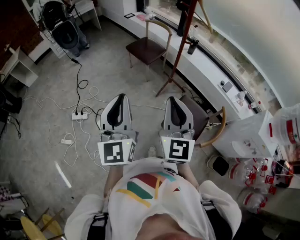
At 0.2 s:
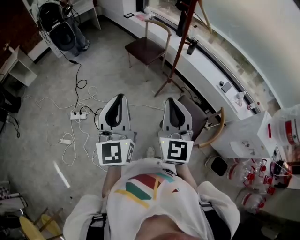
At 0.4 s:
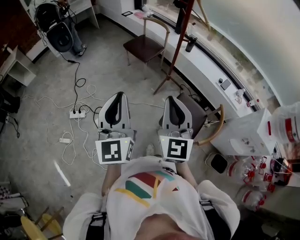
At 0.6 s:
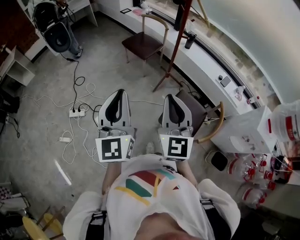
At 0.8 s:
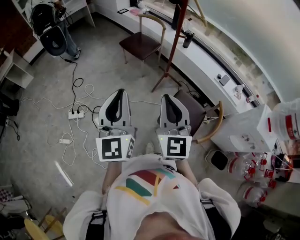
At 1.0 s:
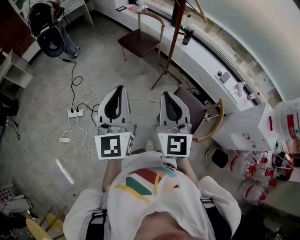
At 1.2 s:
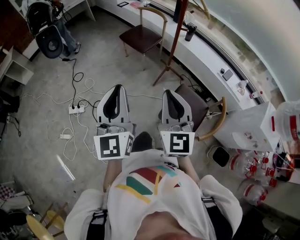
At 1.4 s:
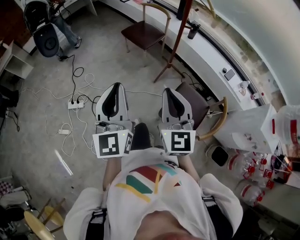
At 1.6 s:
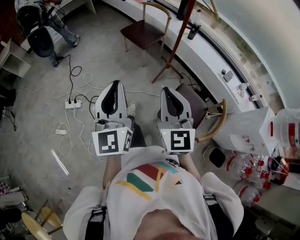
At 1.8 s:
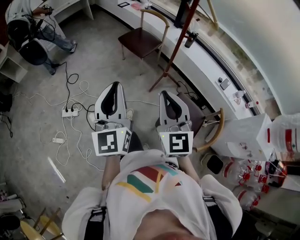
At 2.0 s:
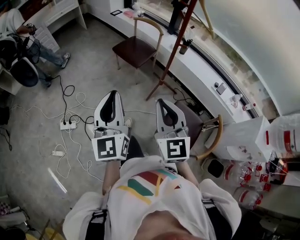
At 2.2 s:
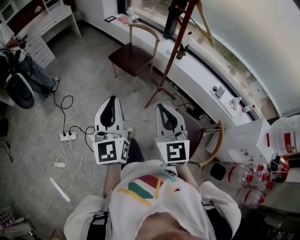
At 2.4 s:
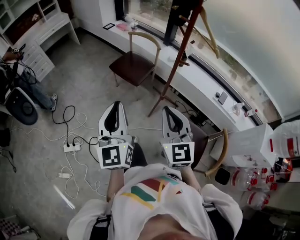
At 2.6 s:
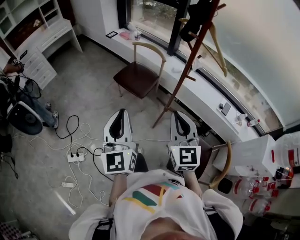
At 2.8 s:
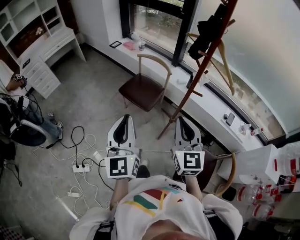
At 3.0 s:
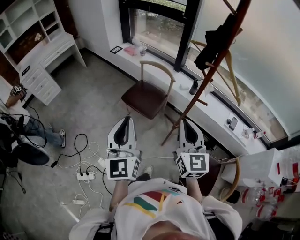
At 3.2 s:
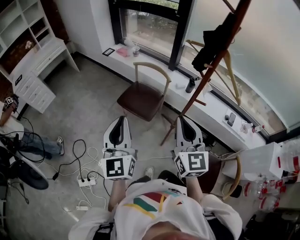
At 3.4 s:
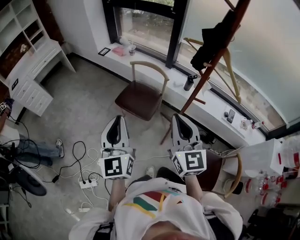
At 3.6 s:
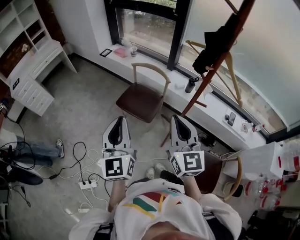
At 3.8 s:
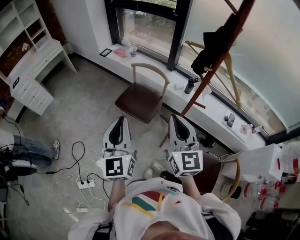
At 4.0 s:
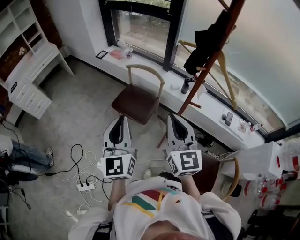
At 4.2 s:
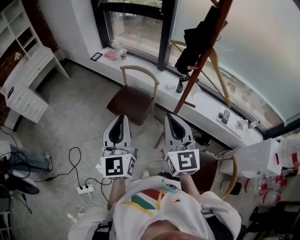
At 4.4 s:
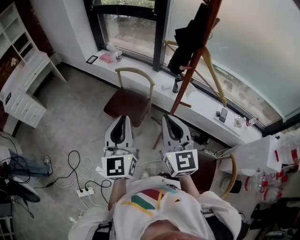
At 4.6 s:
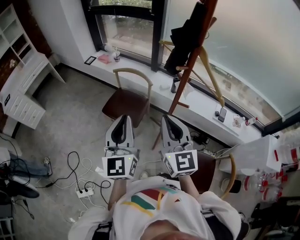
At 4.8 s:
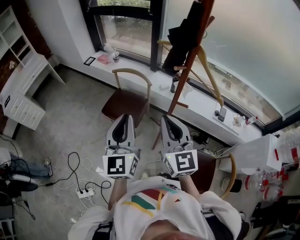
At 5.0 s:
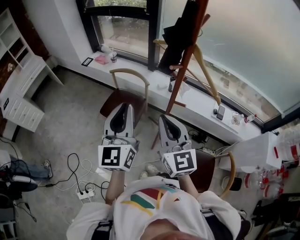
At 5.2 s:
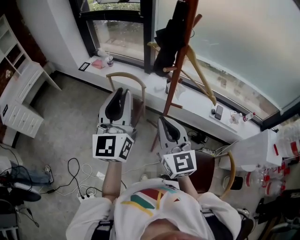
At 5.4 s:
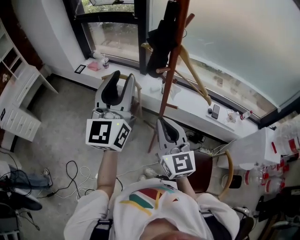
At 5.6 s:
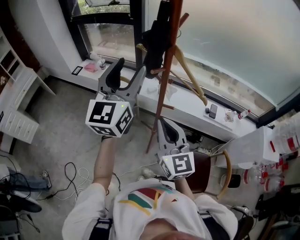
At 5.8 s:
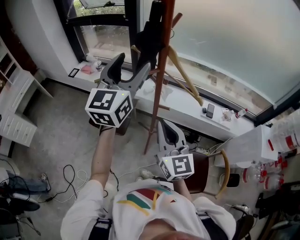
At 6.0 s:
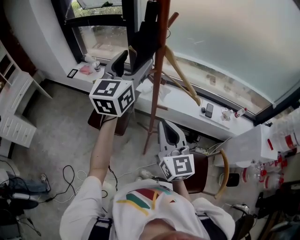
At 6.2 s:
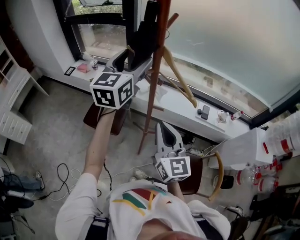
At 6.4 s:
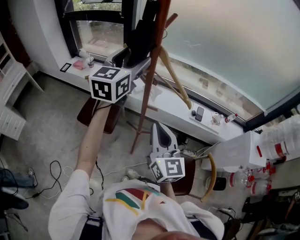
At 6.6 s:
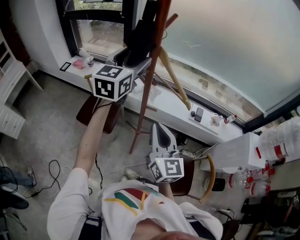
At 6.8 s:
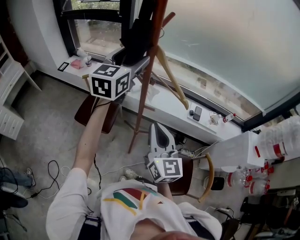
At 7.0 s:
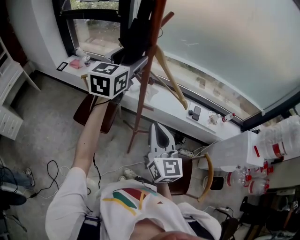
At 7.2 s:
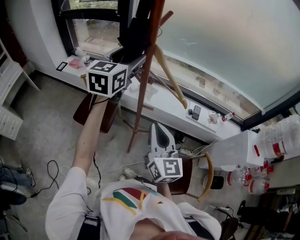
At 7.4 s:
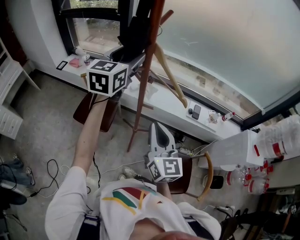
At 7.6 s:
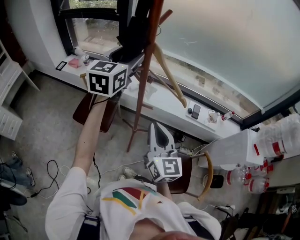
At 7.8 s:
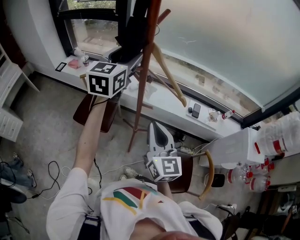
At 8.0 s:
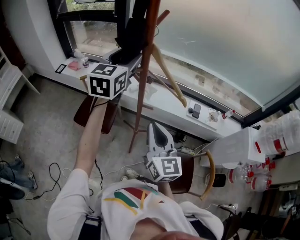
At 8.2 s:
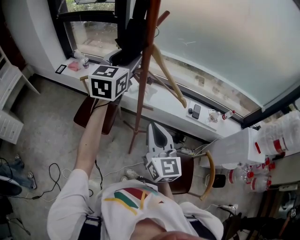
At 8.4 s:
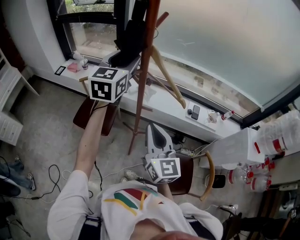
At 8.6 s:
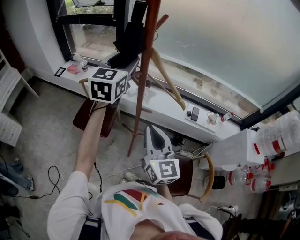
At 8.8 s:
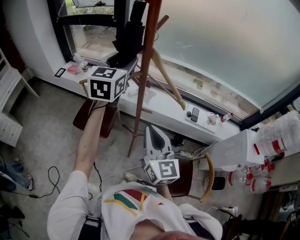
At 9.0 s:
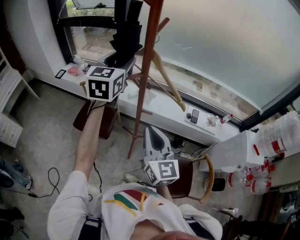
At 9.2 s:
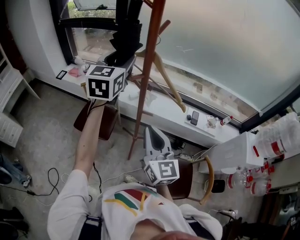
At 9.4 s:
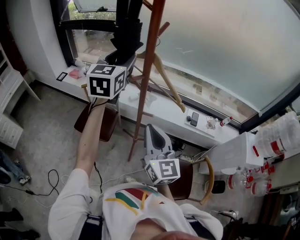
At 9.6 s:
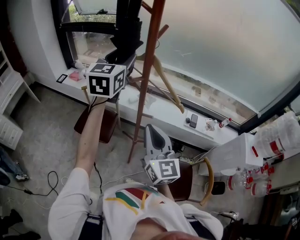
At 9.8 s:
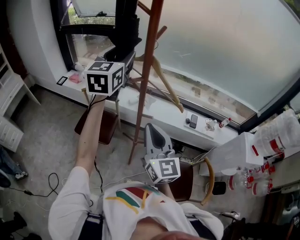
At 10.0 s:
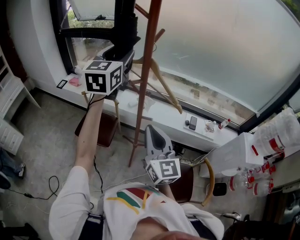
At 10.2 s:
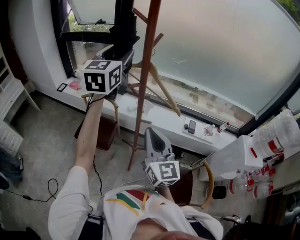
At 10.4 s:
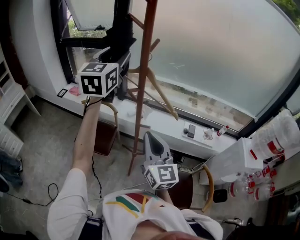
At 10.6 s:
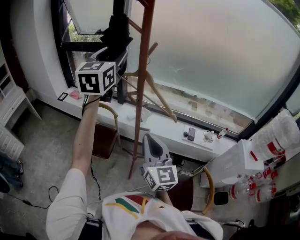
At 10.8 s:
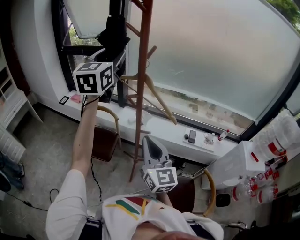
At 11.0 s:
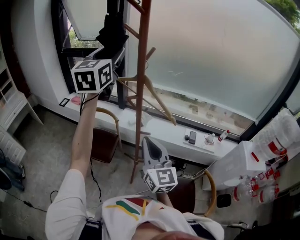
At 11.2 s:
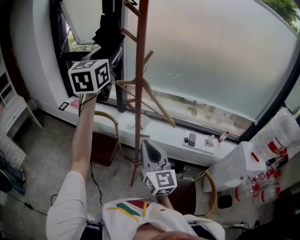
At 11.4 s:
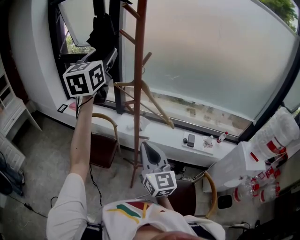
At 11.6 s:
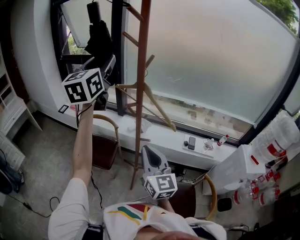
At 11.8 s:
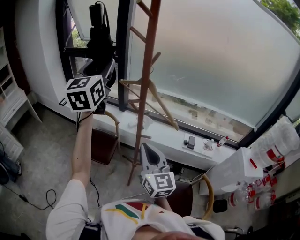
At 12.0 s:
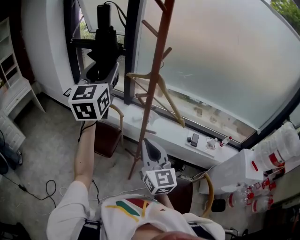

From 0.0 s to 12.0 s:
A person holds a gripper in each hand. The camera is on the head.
From 0.0 s to 1.6 s: The left gripper travels forward by some 5 cm; the right gripper goes approximately 5 cm downward and forward.
From 1.6 s to 3.0 s: The grippers both shift forward by roughly 40 cm.
From 3.0 s to 4.4 s: The left gripper moves forward and to the right, about 15 cm; the right gripper heads forward, covering some 5 cm.
From 4.4 s to 6.0 s: The left gripper moves to the right, forward and upward, about 30 cm, swivels approximately 30 degrees, and opens its fingers. The right gripper moves to the right, some 10 cm.
From 6.0 s to 7.6 s: The left gripper travels forward by roughly 5 cm.
From 7.6 s to 9.0 s: The grippers move only a little.
From 9.0 s to 10.4 s: The left gripper goes some 10 cm upward.
From 10.4 s to 12.0 s: The left gripper travels to the left and backward by roughly 10 cm.

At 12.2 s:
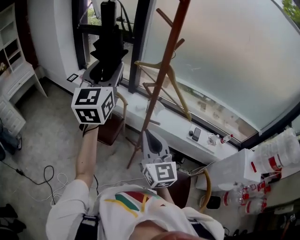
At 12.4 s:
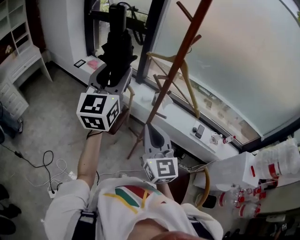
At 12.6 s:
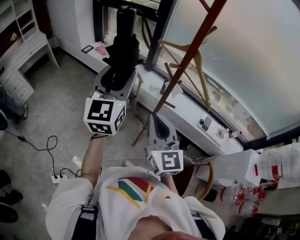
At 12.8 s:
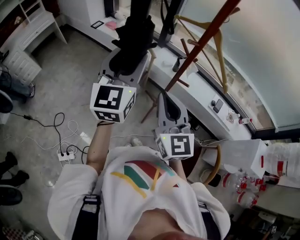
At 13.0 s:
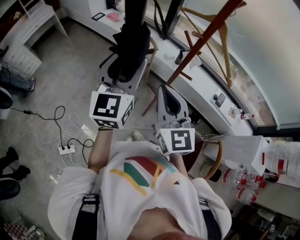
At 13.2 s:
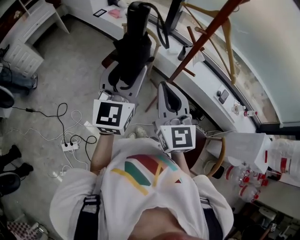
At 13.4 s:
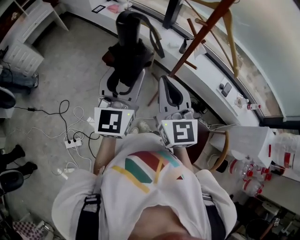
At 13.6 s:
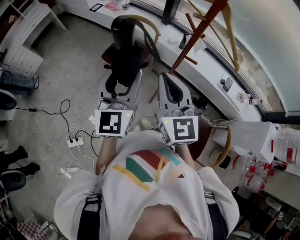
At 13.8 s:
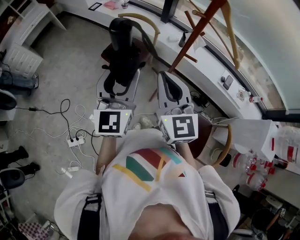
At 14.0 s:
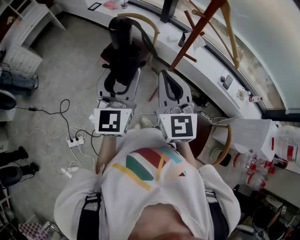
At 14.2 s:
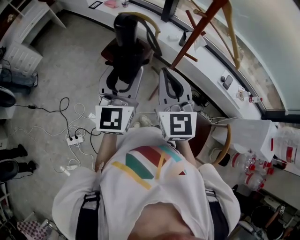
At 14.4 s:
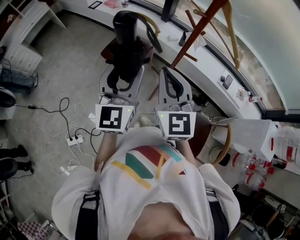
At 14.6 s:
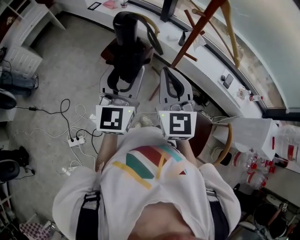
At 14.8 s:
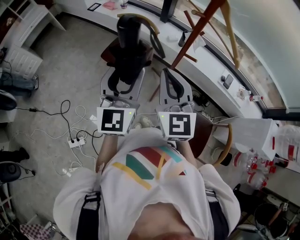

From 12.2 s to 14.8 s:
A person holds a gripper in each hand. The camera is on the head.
From 12.2 s to 13.4 s: The right gripper travels to the left by roughly 5 cm. The left gripper is displaced downward and backward by approximately 25 cm.
From 13.4 s to 14.8 s: The grippers make only small movements.

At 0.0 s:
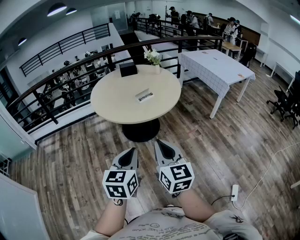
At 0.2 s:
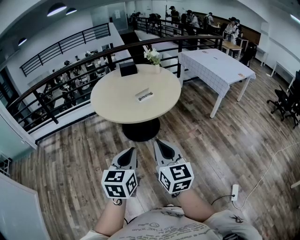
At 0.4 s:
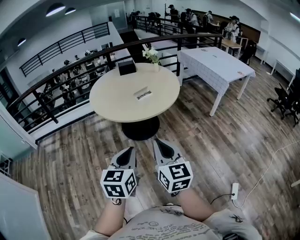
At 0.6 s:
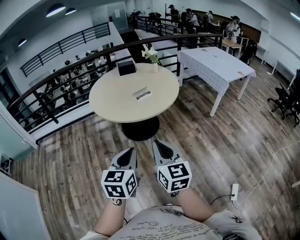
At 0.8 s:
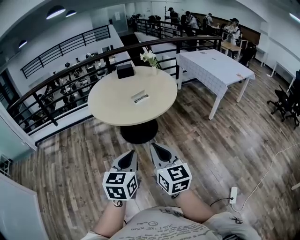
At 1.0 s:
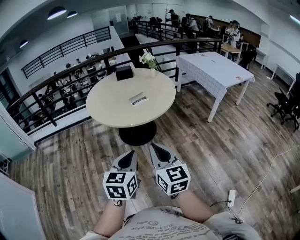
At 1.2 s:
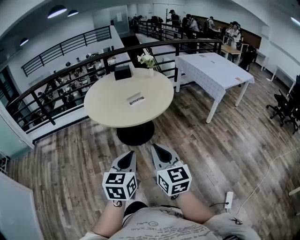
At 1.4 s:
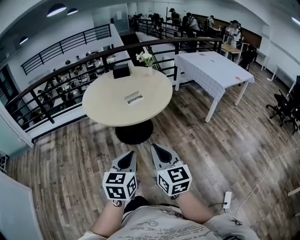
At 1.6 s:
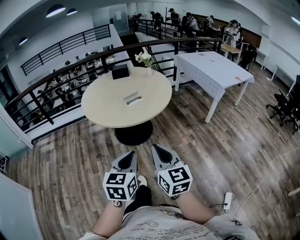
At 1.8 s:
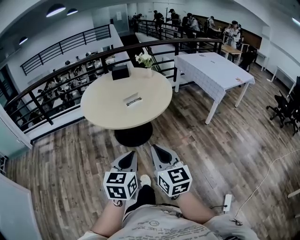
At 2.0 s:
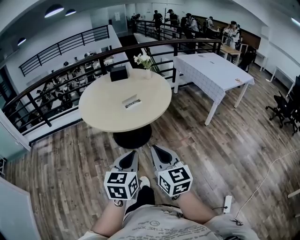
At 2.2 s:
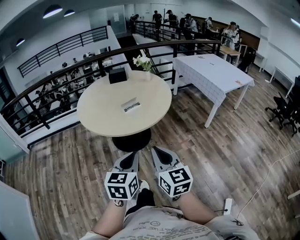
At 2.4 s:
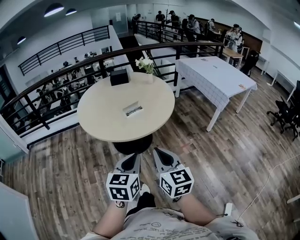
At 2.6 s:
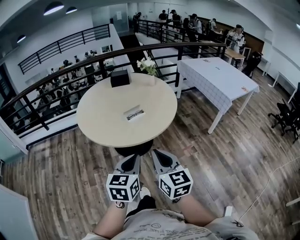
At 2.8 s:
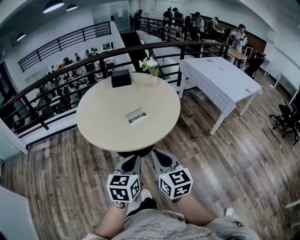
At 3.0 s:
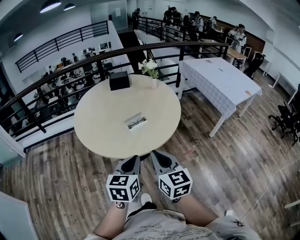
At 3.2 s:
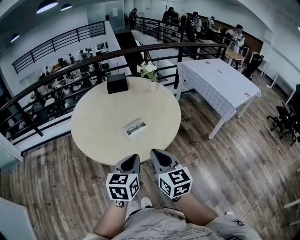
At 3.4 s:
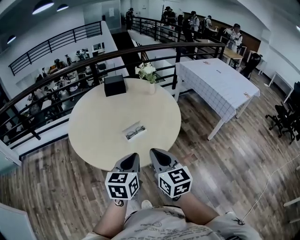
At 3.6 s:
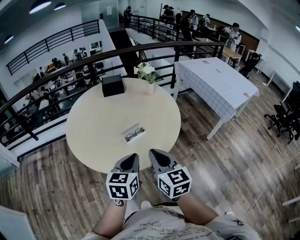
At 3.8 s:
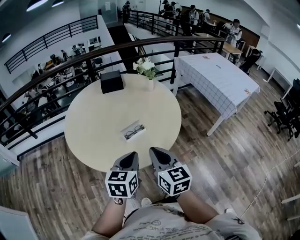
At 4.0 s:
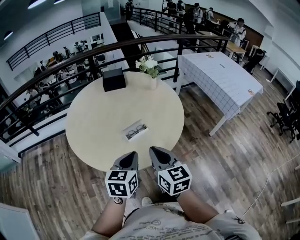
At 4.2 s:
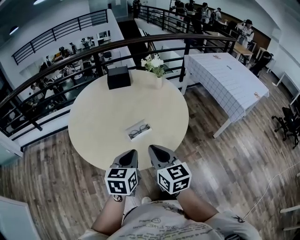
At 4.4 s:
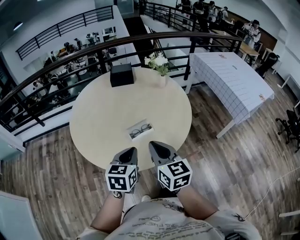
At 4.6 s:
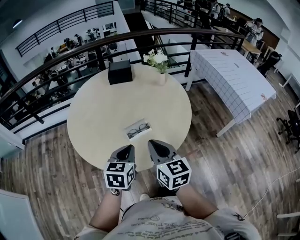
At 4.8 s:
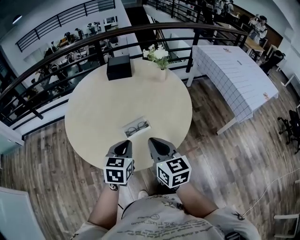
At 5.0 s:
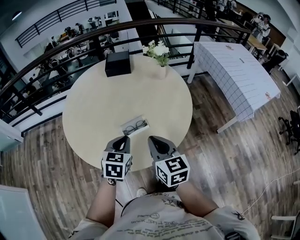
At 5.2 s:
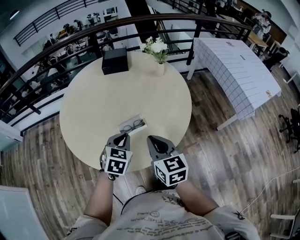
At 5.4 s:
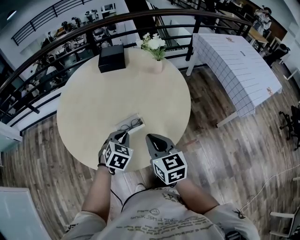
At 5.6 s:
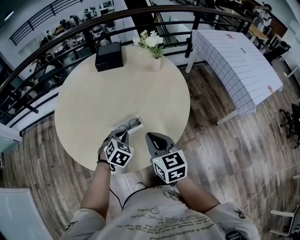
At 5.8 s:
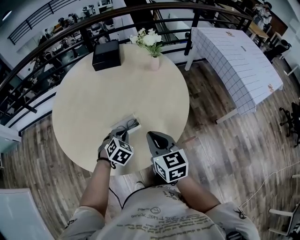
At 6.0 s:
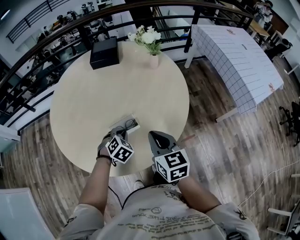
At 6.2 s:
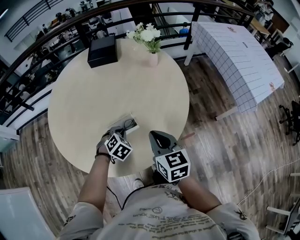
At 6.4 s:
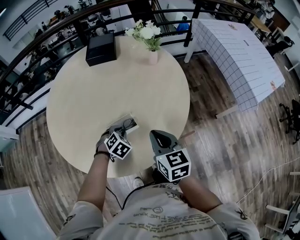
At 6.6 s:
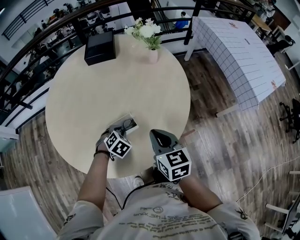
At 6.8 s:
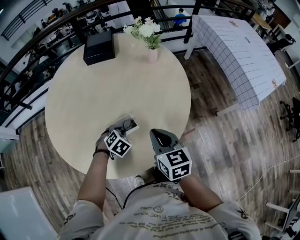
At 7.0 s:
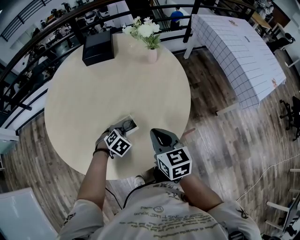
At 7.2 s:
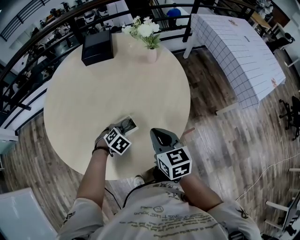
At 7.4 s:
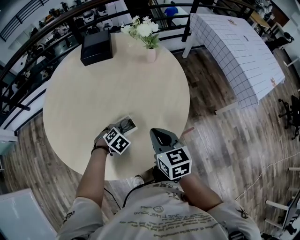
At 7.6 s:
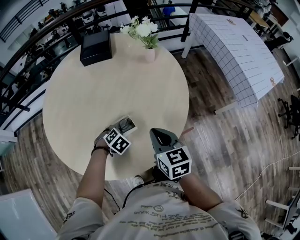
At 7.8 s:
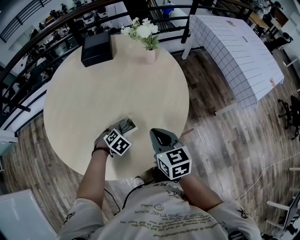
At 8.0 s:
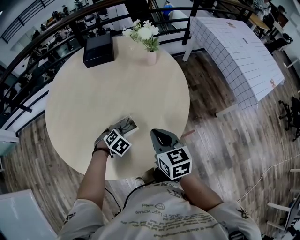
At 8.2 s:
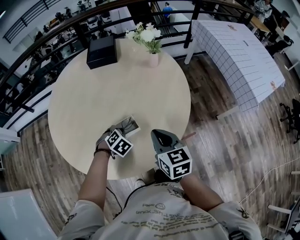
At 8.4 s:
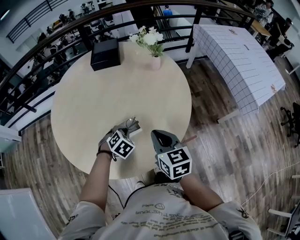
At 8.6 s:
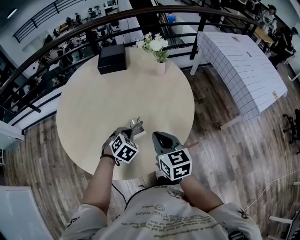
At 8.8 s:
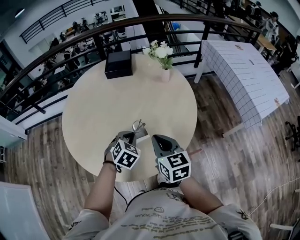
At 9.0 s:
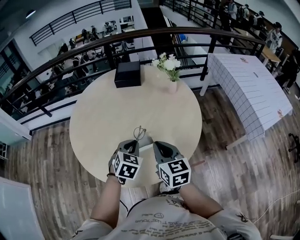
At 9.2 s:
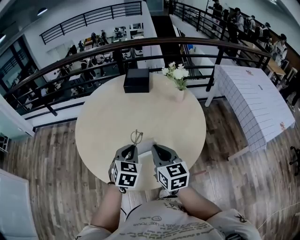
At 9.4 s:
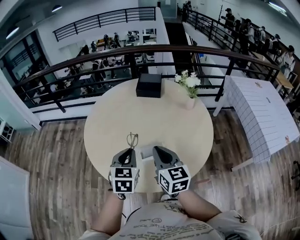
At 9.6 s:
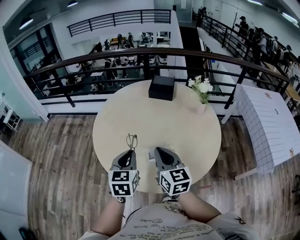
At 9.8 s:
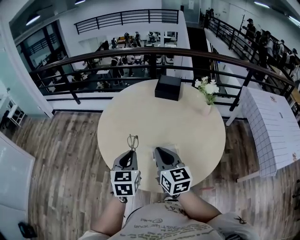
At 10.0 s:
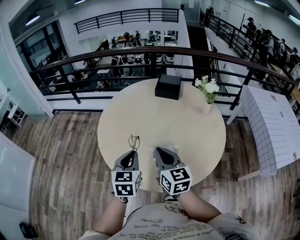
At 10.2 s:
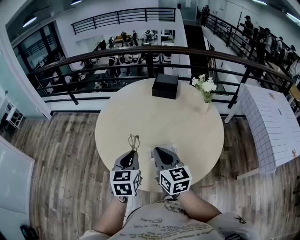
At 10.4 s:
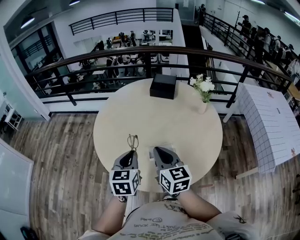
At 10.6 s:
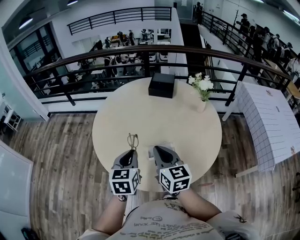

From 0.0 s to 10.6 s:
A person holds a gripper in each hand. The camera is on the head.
From 0.0 s to 1.6 s: Both grippers travel together to the right, approximately 10 cm.
From 1.6 s to 3.0 s: Both grippers move forward, approximately 25 cm.
From 3.0 s to 4.6 s: Both grippers move forward, about 20 cm.
From 4.6 s to 6.0 s: The right gripper travels forward, to the right and downward by some 15 cm. Meanwhile the left gripper is displaced downward and forward by some 25 cm, and turns by some 50 degrees.
From 6.0 s to 7.6 s: The left gripper moves downward, some 10 cm, while the right gripper changes place by roughly 5 cm.
From 7.6 s to 9.0 s: The right gripper goes roughly 10 cm upward and to the left; the left gripper goes approximately 20 cm upward, and tips its fingers upward by about 30 degrees.
From 9.0 s to 10.6 s: The left gripper goes about 15 cm to the left and upward, and turns by about 40 degrees. The right gripper heads to the left, covering about 10 cm.
